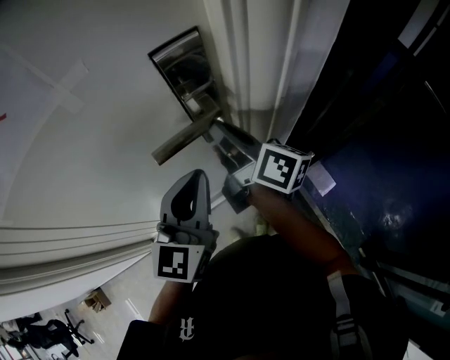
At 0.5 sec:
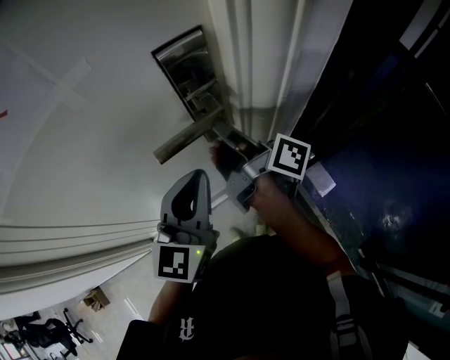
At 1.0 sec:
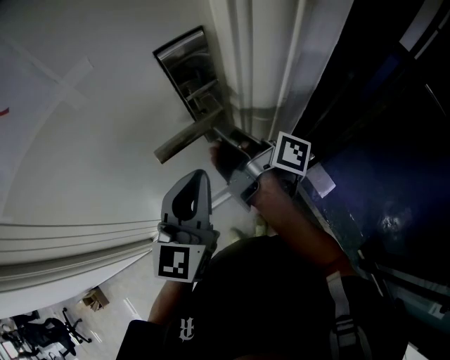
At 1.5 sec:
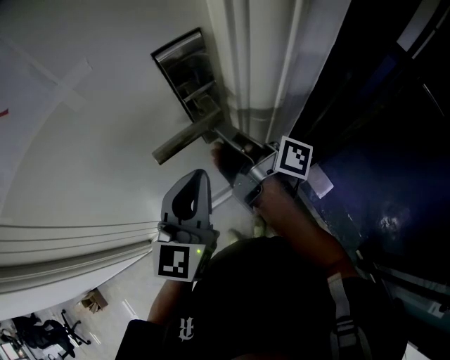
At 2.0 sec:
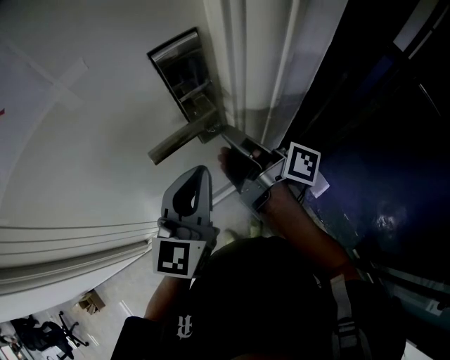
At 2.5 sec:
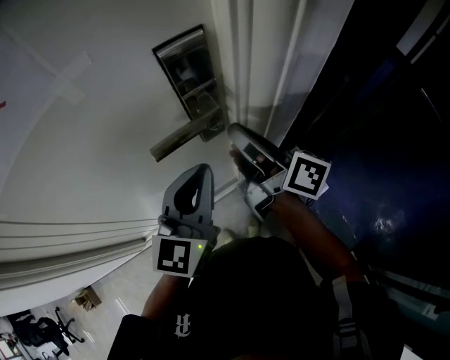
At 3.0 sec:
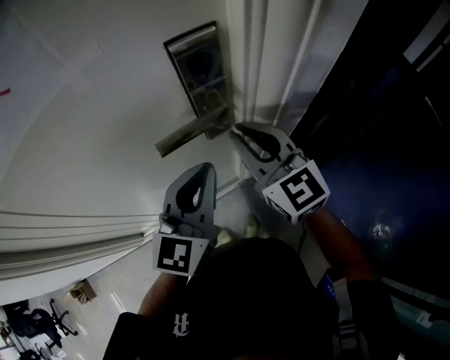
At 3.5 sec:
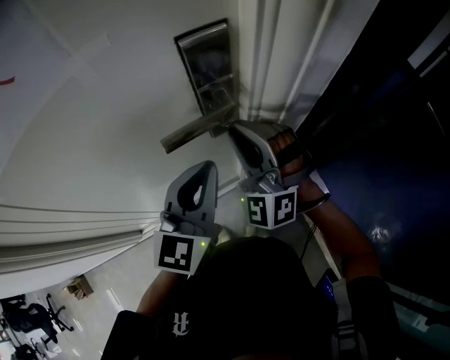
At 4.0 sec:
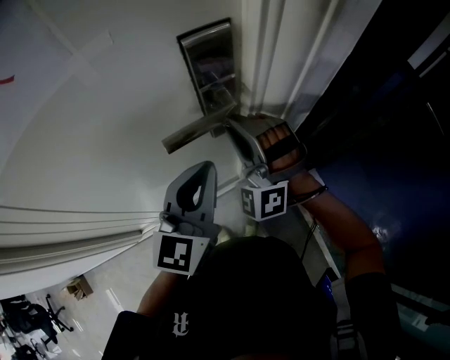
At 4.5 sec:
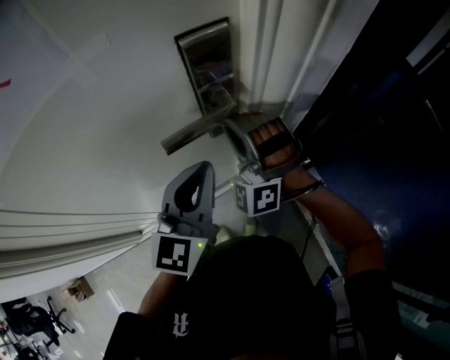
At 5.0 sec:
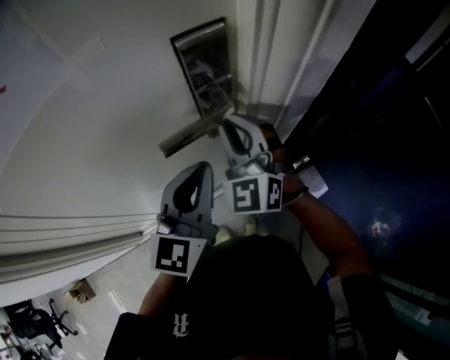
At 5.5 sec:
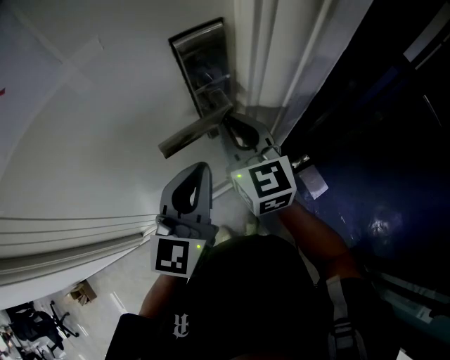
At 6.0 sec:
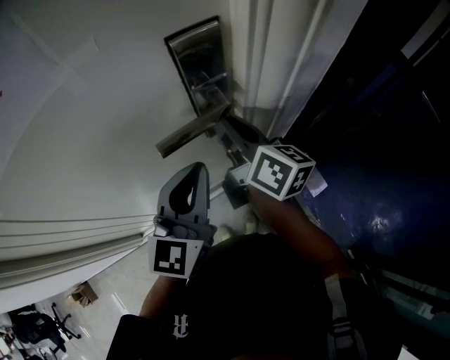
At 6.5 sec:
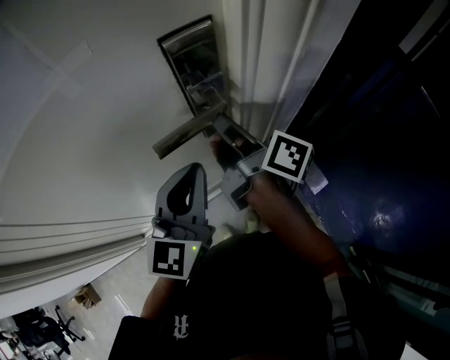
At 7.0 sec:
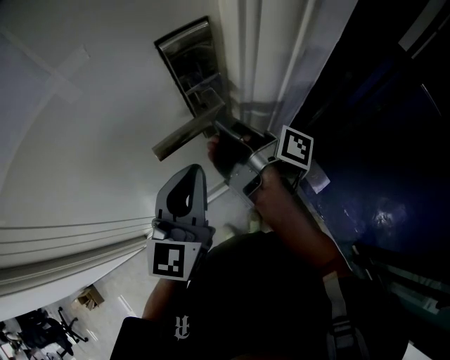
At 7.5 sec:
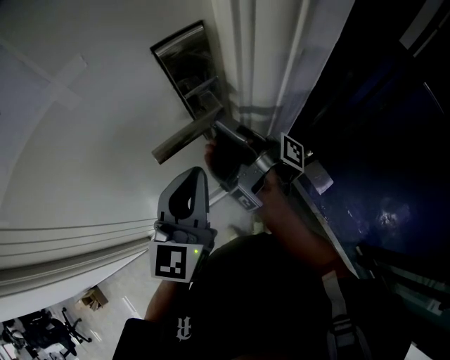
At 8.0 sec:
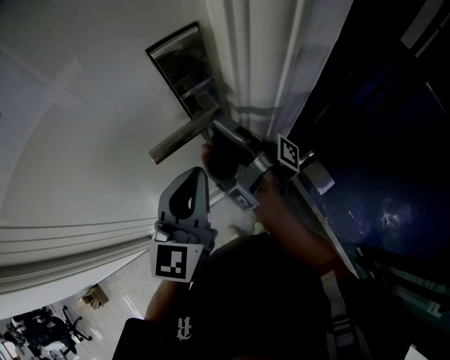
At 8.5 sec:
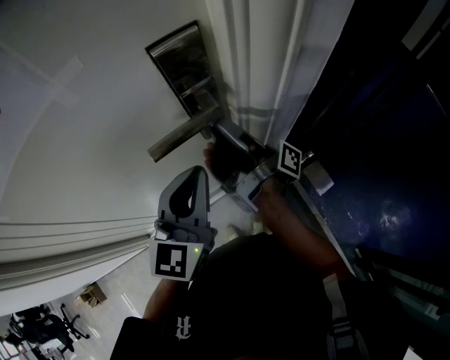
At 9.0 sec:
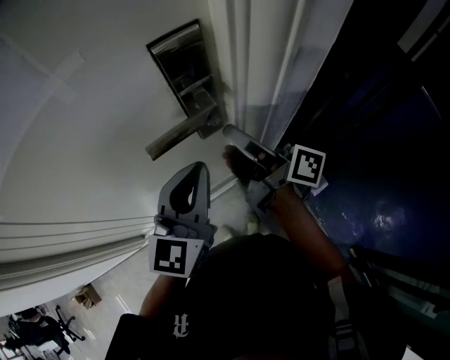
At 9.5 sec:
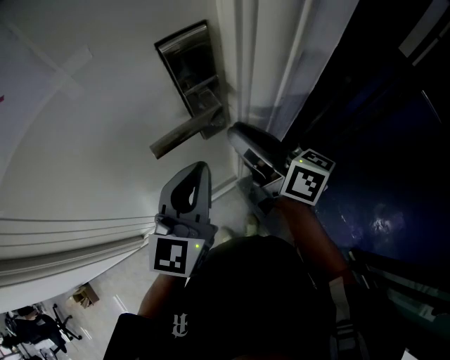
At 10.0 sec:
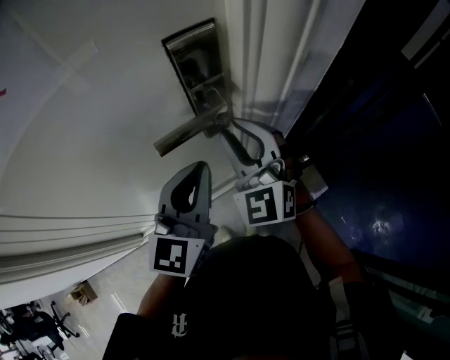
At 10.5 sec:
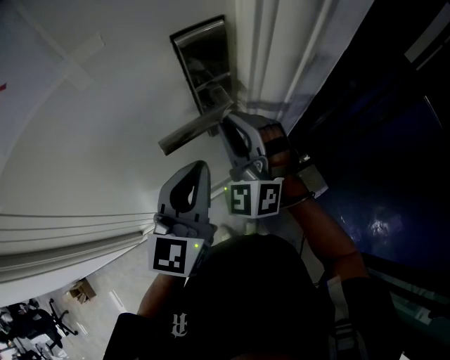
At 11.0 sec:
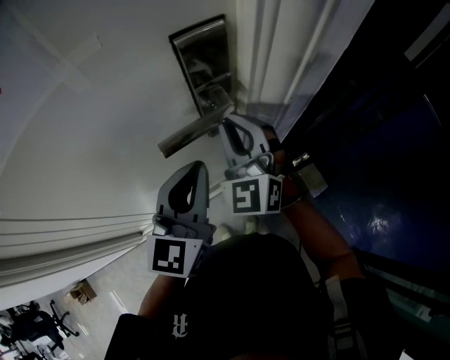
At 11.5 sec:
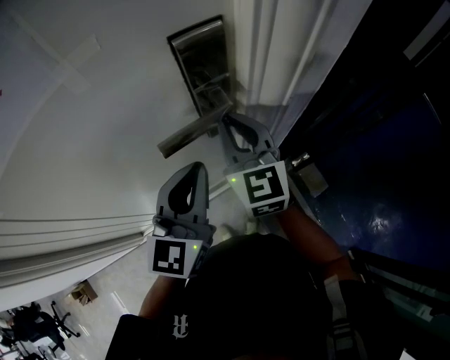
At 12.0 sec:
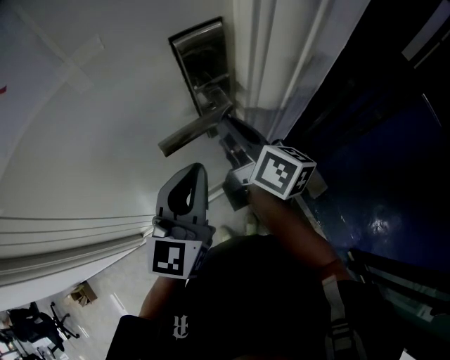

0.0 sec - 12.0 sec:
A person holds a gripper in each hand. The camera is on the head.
0.0 sec - 2.0 sec: The right gripper swivels about 30 degrees.
2.0 sec - 4.0 sec: The right gripper rotates around the line of its fingers by approximately 160 degrees, counterclockwise from behind.
4.0 sec - 6.0 sec: The right gripper rolls clockwise, seen from behind, by about 120 degrees.
6.0 sec - 8.0 sec: The right gripper rotates around the line of its fingers by about 70 degrees, clockwise from behind.
8.0 sec - 10.0 sec: The right gripper rotates around the line of its fingers by about 150 degrees, counterclockwise from behind.
10.0 sec - 12.0 sec: The right gripper twists some 80 degrees clockwise, seen from behind.

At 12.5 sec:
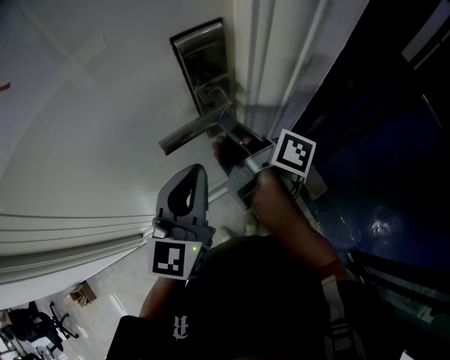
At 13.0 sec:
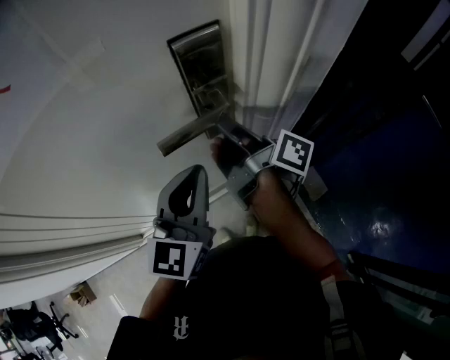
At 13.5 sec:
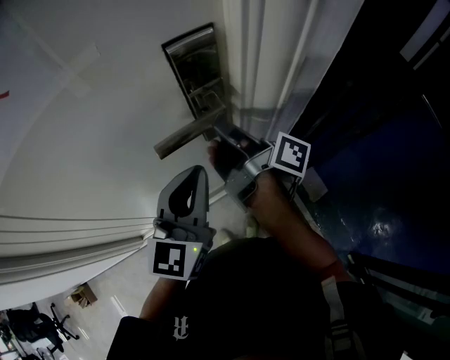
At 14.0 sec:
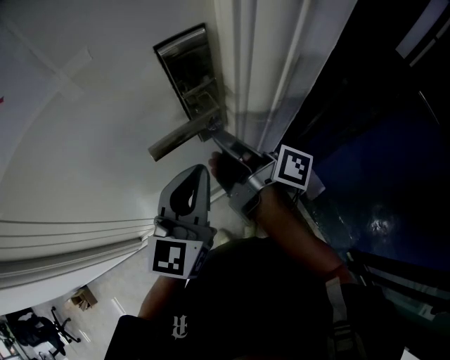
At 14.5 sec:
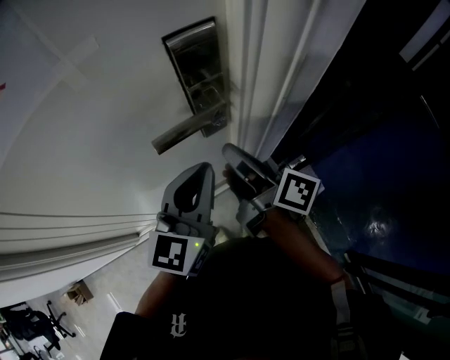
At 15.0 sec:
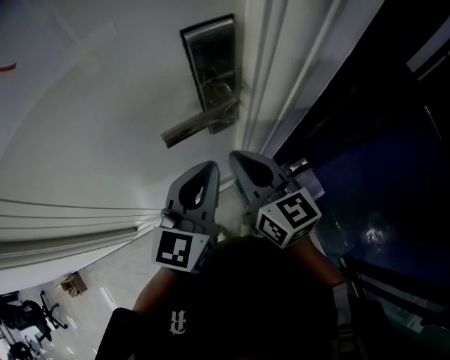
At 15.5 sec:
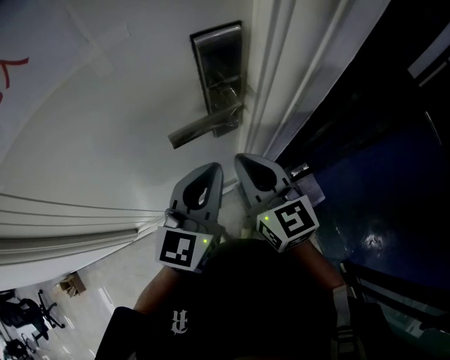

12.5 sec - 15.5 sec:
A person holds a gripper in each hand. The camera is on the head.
12.5 sec - 14.0 sec: The grippers stay close to where they were, moving slightly.
14.0 sec - 15.5 sec: The right gripper heads backward, covering some 5 cm, and rotates around the line of its fingers by approximately 80 degrees, counterclockwise from behind.

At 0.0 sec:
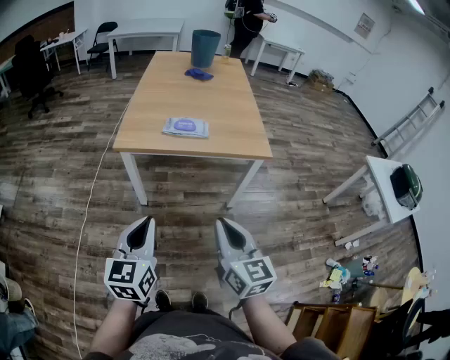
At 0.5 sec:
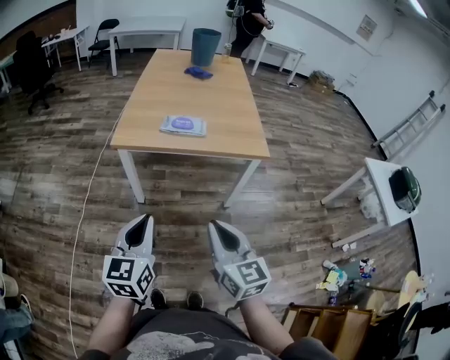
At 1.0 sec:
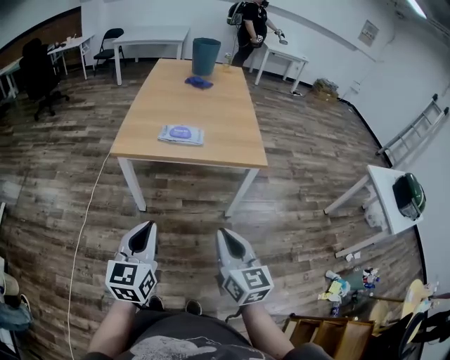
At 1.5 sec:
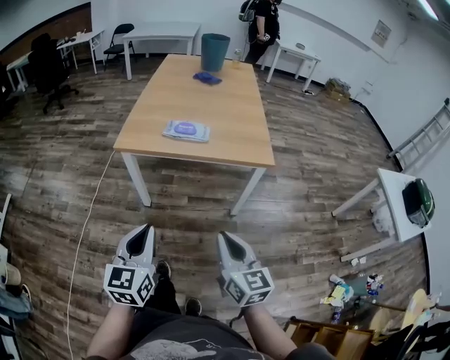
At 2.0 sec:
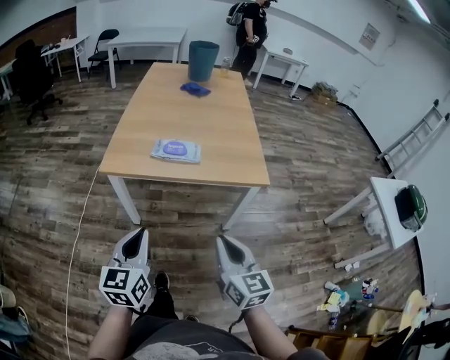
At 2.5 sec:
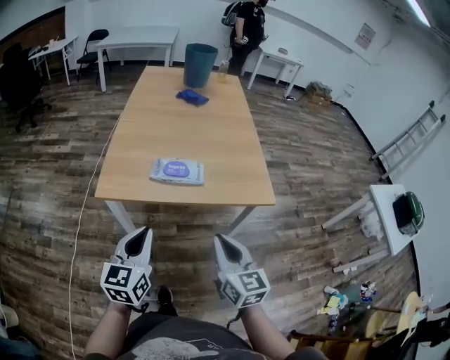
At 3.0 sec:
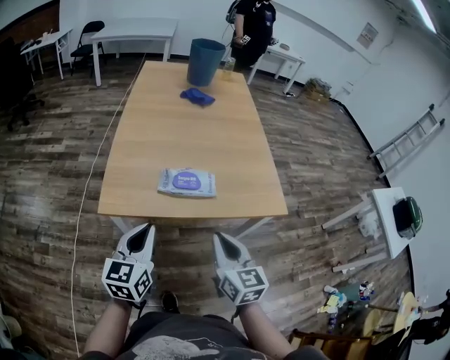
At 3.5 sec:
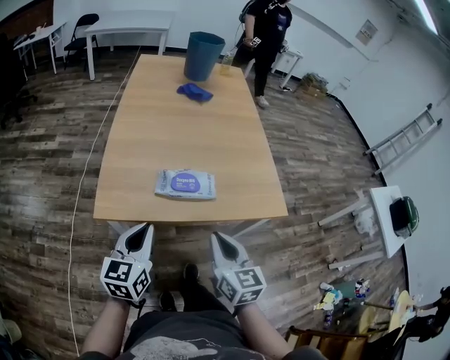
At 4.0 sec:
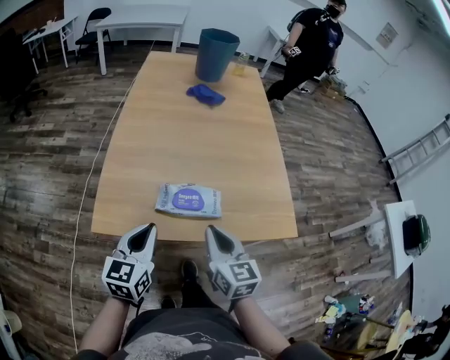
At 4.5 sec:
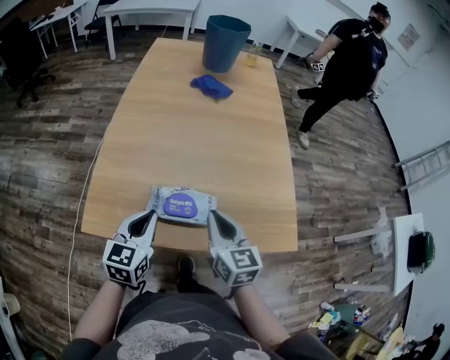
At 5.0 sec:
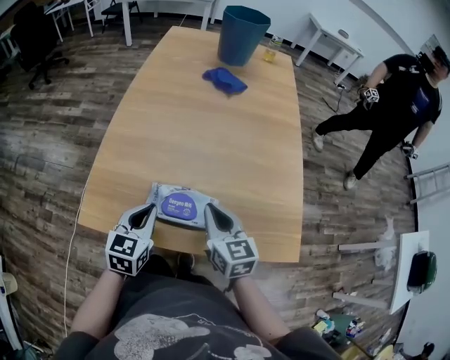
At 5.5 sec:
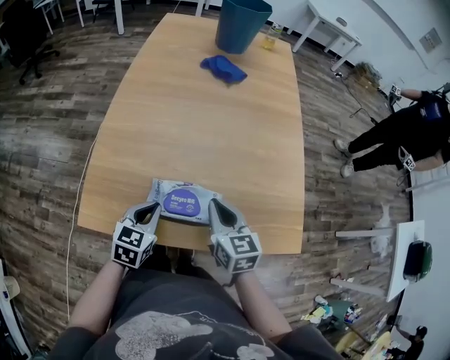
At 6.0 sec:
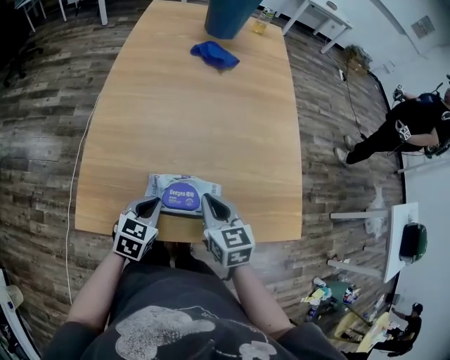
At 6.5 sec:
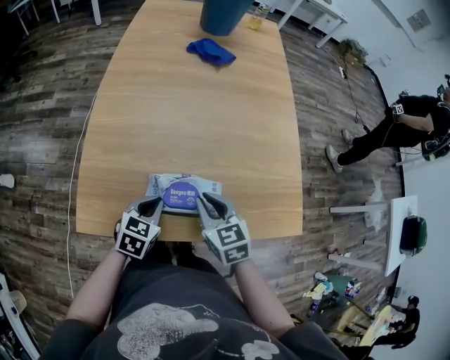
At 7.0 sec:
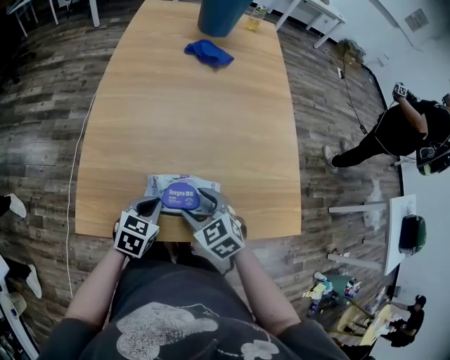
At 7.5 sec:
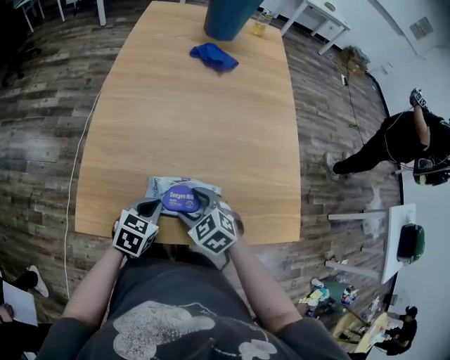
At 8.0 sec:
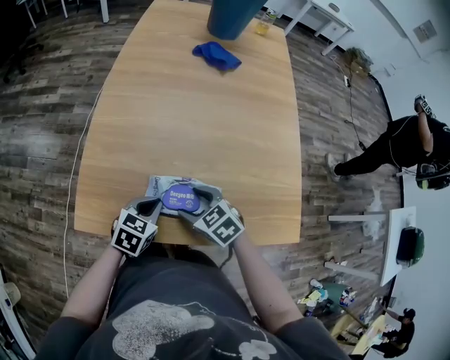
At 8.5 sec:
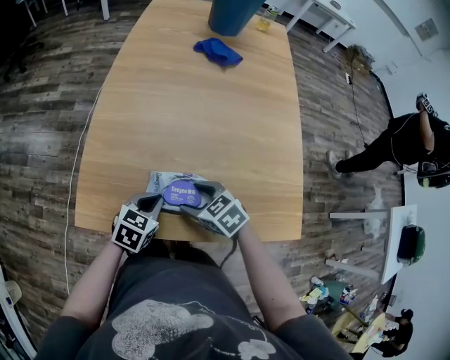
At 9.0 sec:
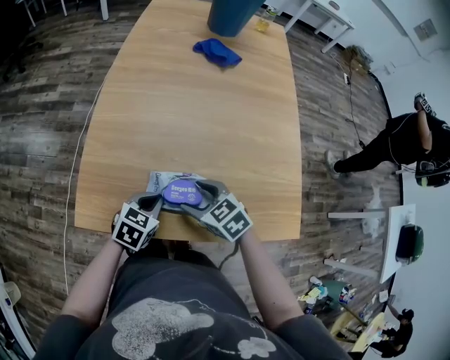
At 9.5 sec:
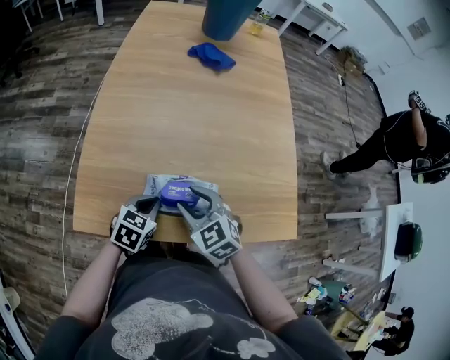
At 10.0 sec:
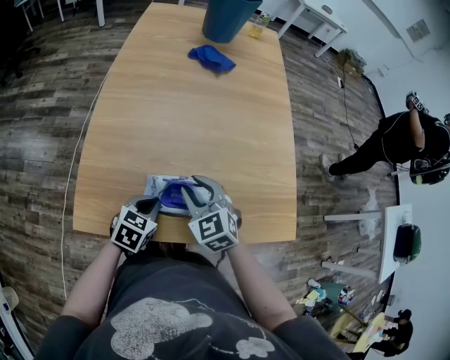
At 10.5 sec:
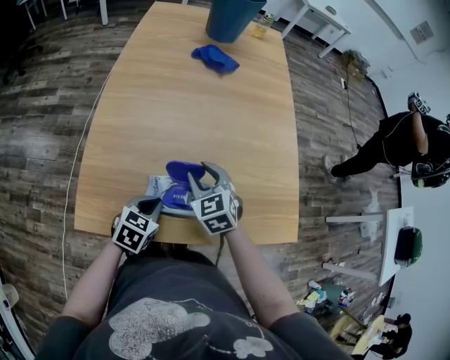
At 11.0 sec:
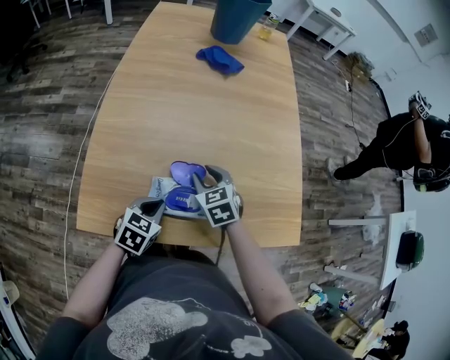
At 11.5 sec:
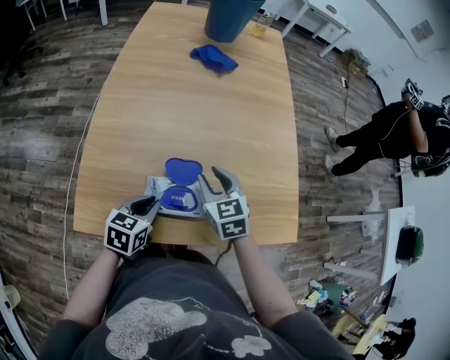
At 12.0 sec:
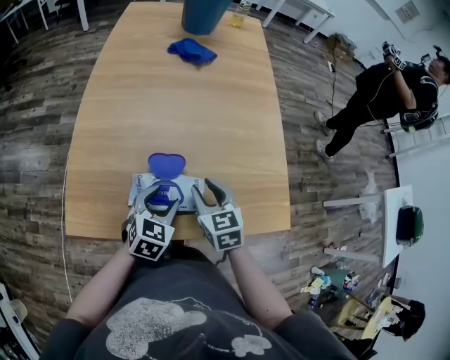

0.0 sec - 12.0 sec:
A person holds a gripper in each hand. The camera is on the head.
0.0 sec - 2.0 sec: The right gripper moves forward and to the right, approximately 10 cm; the left gripper travels forward by roughly 10 cm.
2.0 sec - 4.0 sec: The two grippers go roughly 30 cm forward.
4.0 sec - 6.0 sec: The left gripper moves downward and forward, about 15 cm, and swivels approximately 30 degrees; the right gripper moves forward and downward, roughly 15 cm.
6.0 sec - 8.0 sec: The right gripper moves downward and to the left, roughly 10 cm, swivels roughly 40 degrees, and opens.
8.0 sec - 10.0 sec: The right gripper heads upward, covering some 5 cm, turns by about 30 degrees, and closes up.
10.0 sec - 12.0 sec: The two grippers go approximately 5 cm to the right. The right gripper changes its angle by roughly 30 degrees; the left gripper opens.
